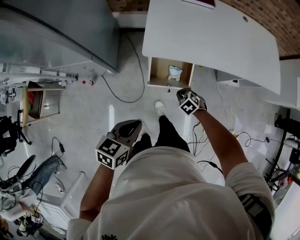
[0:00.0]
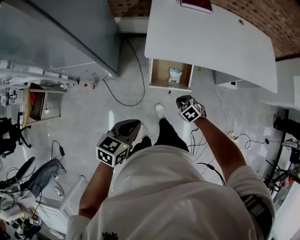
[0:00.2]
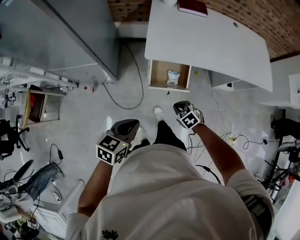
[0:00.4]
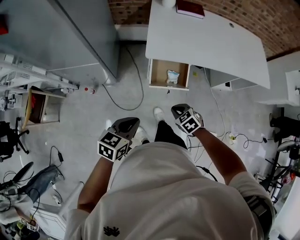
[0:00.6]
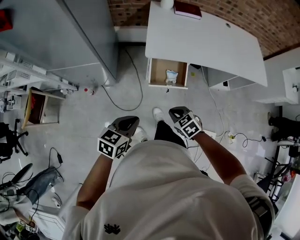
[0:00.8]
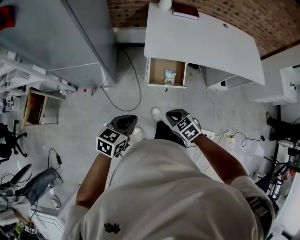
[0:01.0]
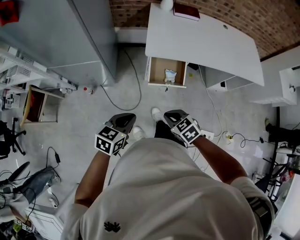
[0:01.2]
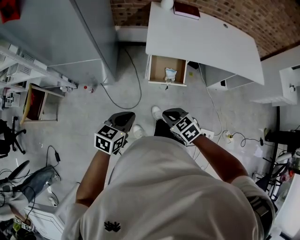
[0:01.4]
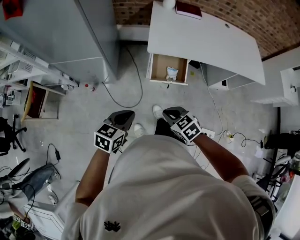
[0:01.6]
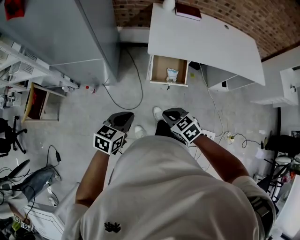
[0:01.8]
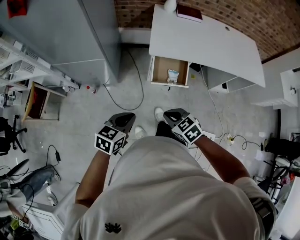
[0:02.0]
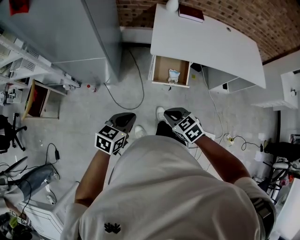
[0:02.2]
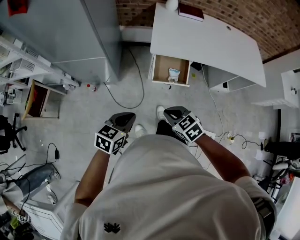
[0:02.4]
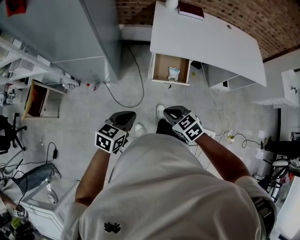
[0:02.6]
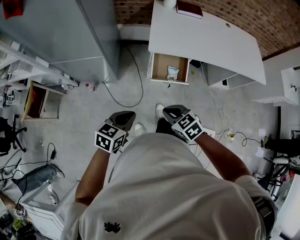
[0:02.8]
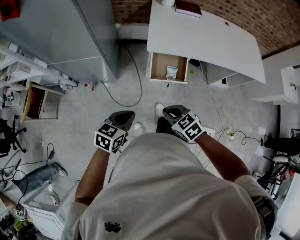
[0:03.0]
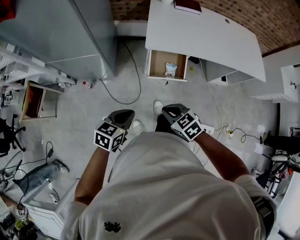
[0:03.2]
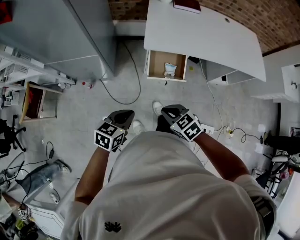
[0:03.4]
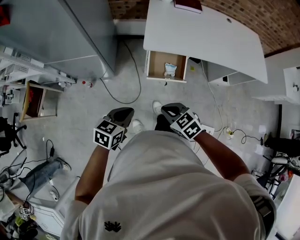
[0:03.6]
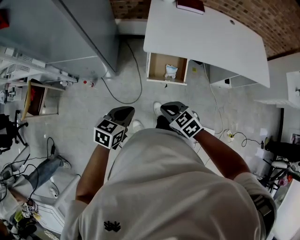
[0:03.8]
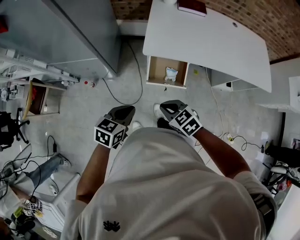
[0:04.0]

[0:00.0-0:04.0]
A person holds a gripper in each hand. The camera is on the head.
0:00.0 to 0:01.4: The right gripper travels backward, upward and to the left by some 35 cm, and rotates roughly 20 degrees. Meanwhile the left gripper goes some 15 cm backward and to the left.
0:01.4 to 0:02.6: The grippers move only a little.
0:02.6 to 0:04.0: Both grippers travel together forward and to the right, roughly 15 cm.

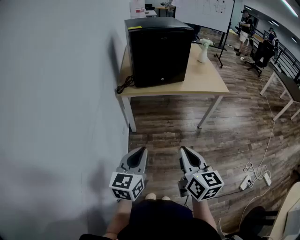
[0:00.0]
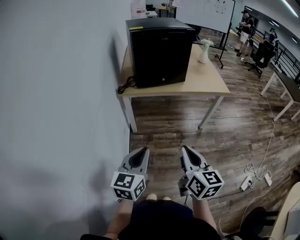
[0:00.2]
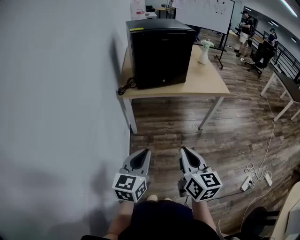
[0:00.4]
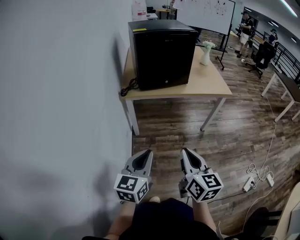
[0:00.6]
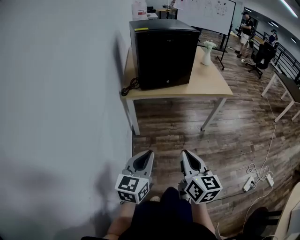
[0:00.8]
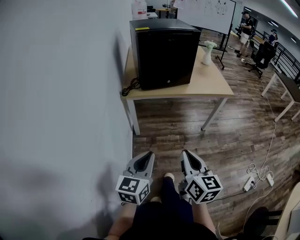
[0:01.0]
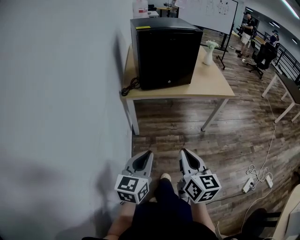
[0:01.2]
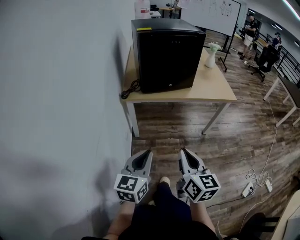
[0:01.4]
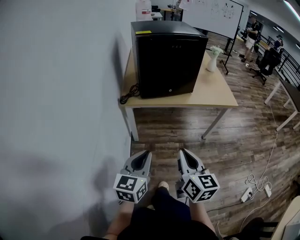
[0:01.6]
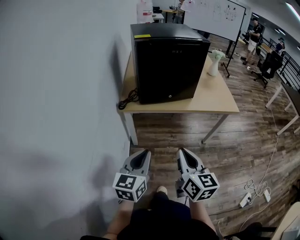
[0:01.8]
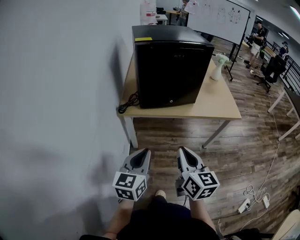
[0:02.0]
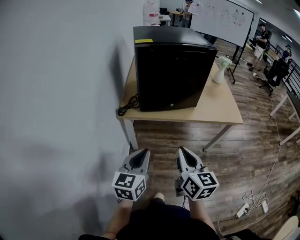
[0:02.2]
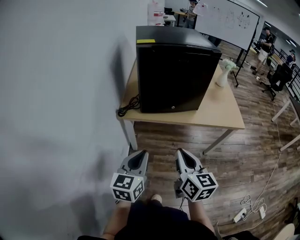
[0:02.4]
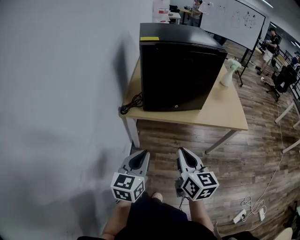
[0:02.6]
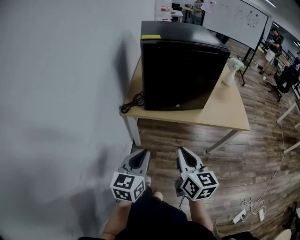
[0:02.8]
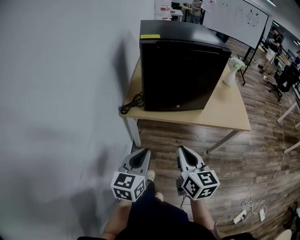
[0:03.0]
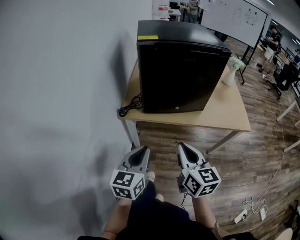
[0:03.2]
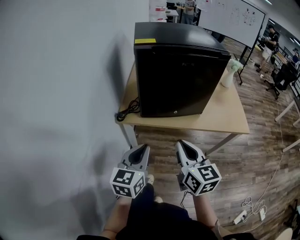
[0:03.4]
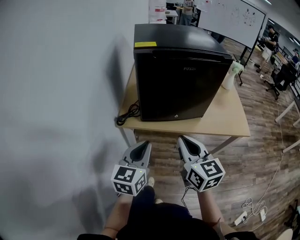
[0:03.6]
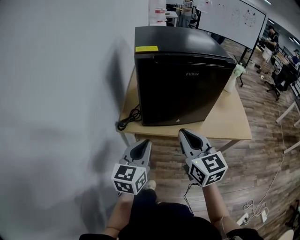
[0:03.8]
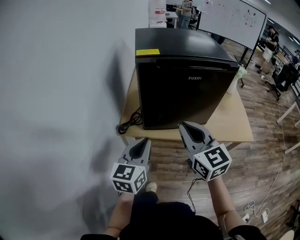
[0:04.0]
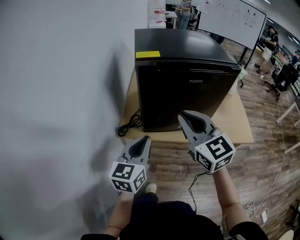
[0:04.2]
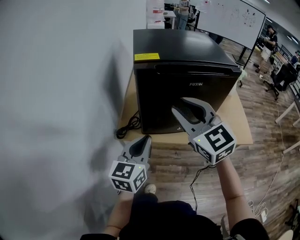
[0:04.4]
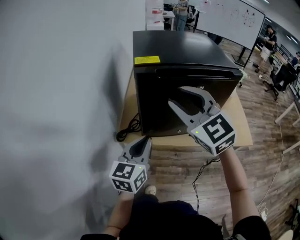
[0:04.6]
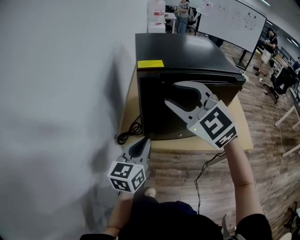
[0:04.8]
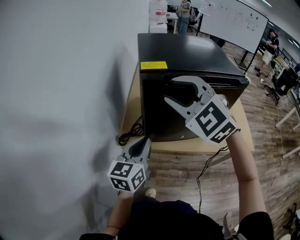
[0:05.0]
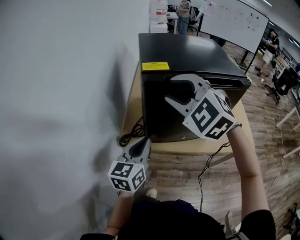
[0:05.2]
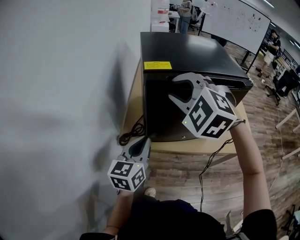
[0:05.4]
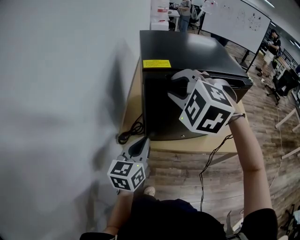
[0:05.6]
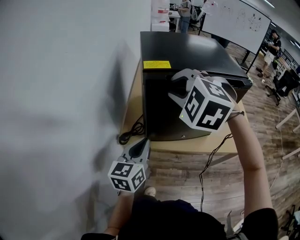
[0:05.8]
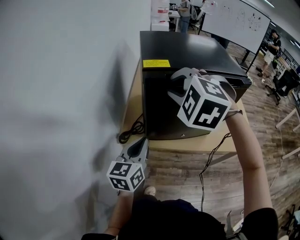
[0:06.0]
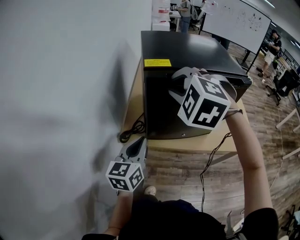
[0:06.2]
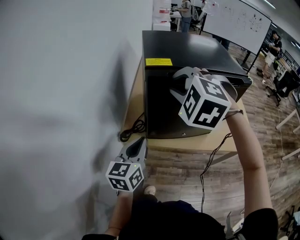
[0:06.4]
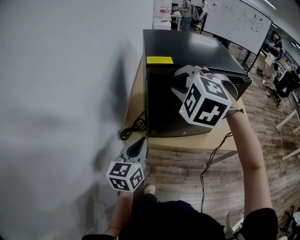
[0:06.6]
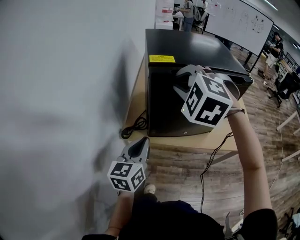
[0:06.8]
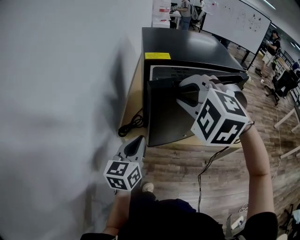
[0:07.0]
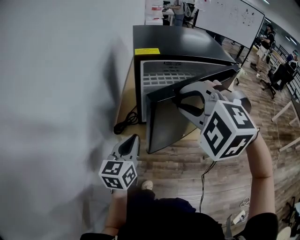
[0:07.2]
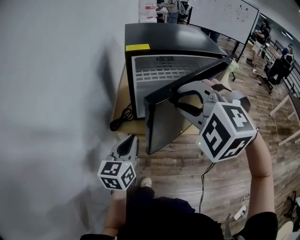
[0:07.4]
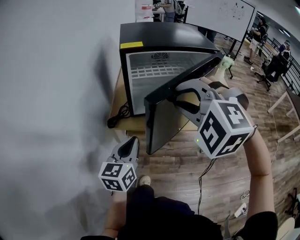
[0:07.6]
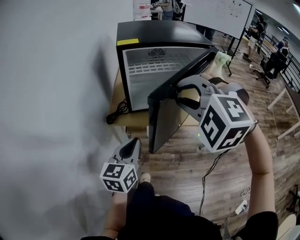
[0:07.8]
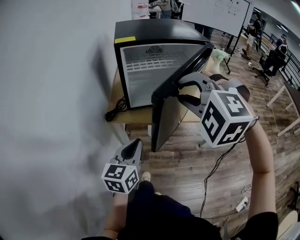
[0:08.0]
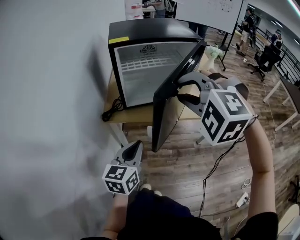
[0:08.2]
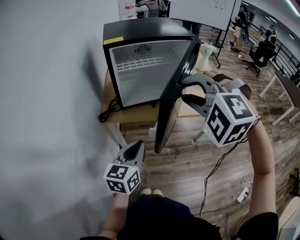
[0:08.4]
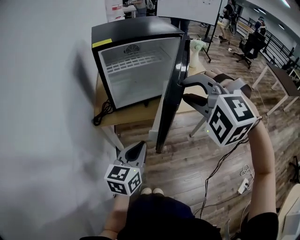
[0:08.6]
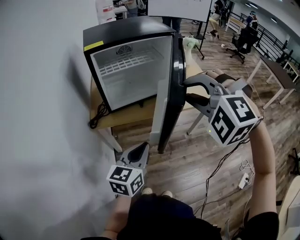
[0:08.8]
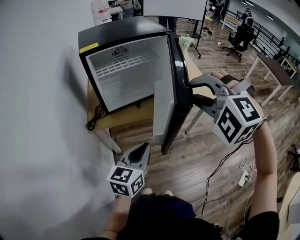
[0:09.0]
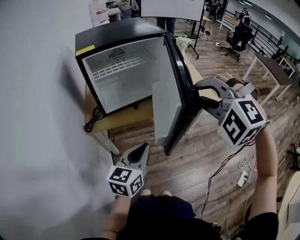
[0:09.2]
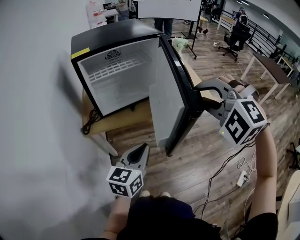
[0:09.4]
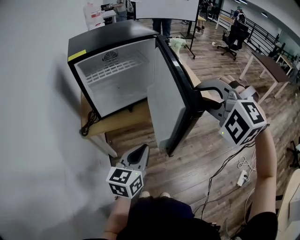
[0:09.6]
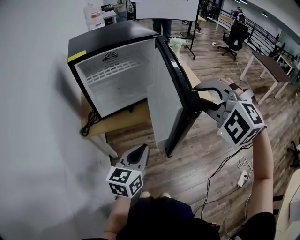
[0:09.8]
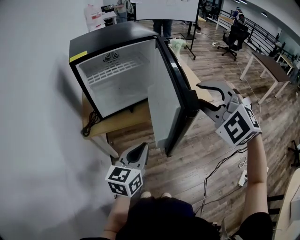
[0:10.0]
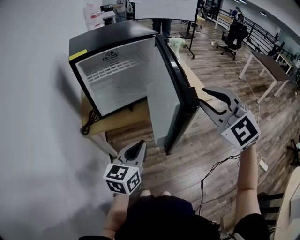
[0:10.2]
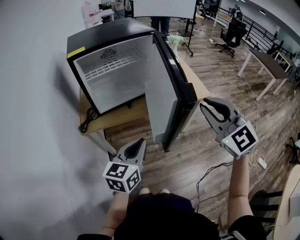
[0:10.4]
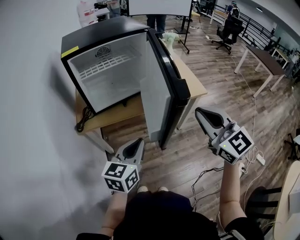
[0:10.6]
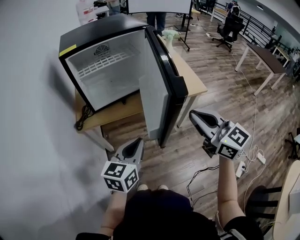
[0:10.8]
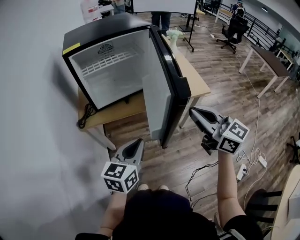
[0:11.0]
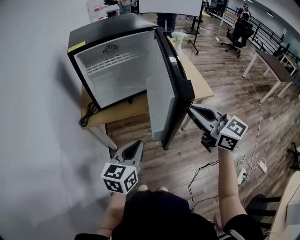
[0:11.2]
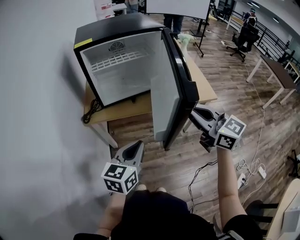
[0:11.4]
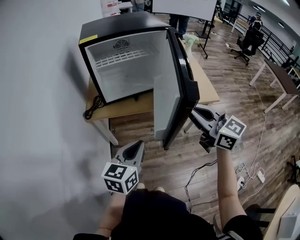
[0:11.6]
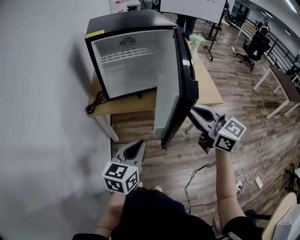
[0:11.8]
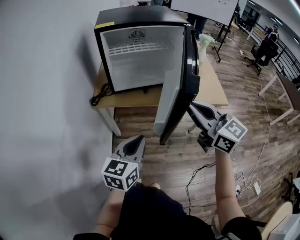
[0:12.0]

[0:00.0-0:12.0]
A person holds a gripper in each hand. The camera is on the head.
0:00.0 to 0:01.6: Both grippers move forward, approximately 10 cm.
0:01.6 to 0:03.0: The two grippers go some 15 cm forward.
0:03.0 to 0:04.4: The left gripper goes about 20 cm forward; the right gripper is displaced forward and upward by approximately 30 cm, turns by some 40 degrees, and opens its fingers.
0:04.4 to 0:06.0: The left gripper shifts by roughly 5 cm. Meanwhile the right gripper travels forward and to the left by roughly 10 cm, and tips its fingers downward by about 30 degrees.
0:06.0 to 0:07.6: The left gripper is displaced backward by some 15 cm. The right gripper is displaced backward and to the right by some 20 cm.
0:07.6 to 0:09.0: The right gripper heads to the right, covering approximately 15 cm. Meanwhile the left gripper is displaced to the right and backward by approximately 15 cm, and swivels about 20 degrees.
0:09.0 to 0:10.4: The right gripper heads to the right, covering approximately 10 cm, and rolls clockwise, seen from behind, by about 50 degrees.
0:10.4 to 0:12.0: The right gripper goes roughly 10 cm to the left and downward, and turns by about 40 degrees.

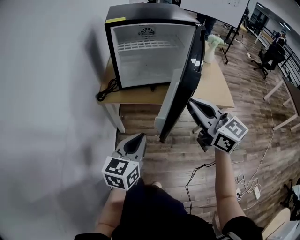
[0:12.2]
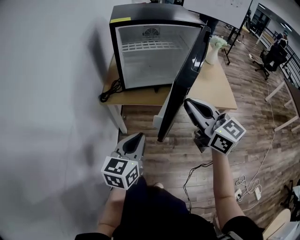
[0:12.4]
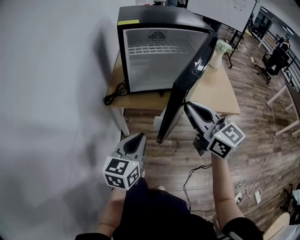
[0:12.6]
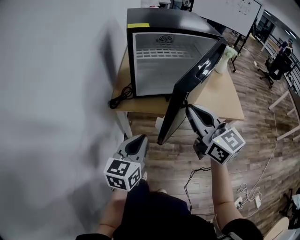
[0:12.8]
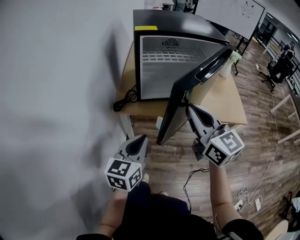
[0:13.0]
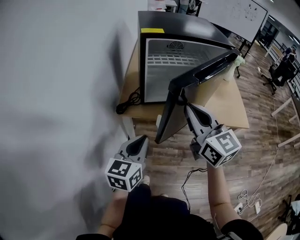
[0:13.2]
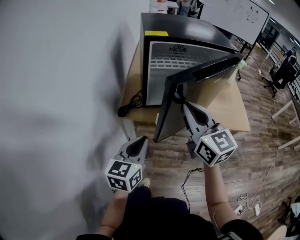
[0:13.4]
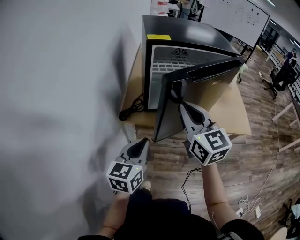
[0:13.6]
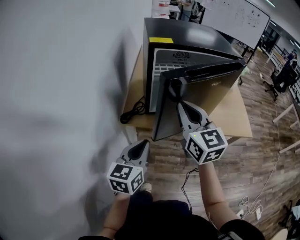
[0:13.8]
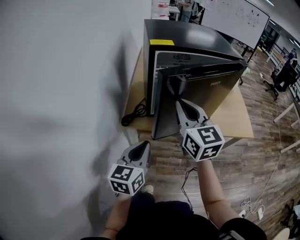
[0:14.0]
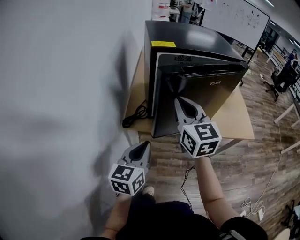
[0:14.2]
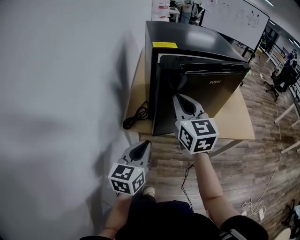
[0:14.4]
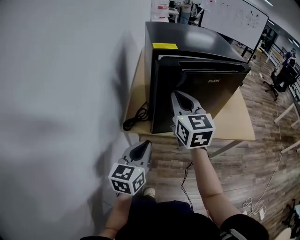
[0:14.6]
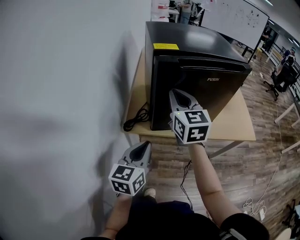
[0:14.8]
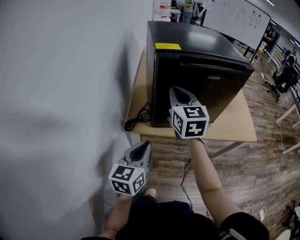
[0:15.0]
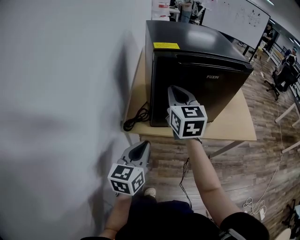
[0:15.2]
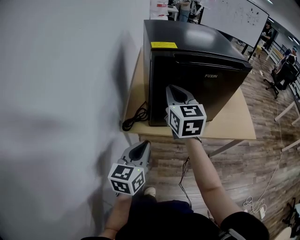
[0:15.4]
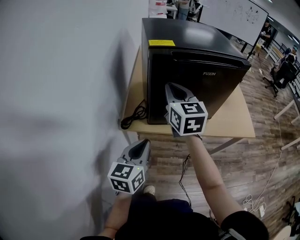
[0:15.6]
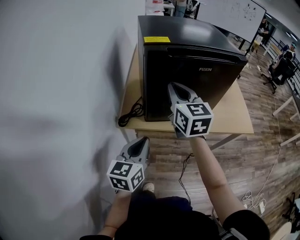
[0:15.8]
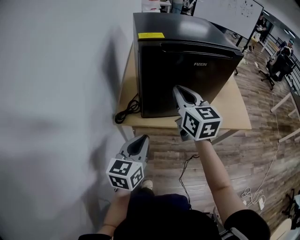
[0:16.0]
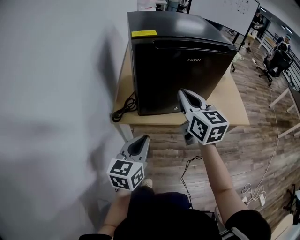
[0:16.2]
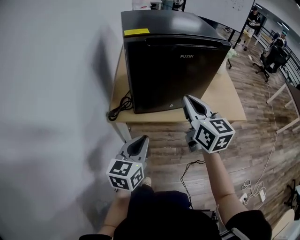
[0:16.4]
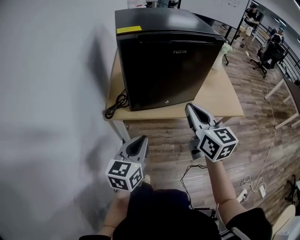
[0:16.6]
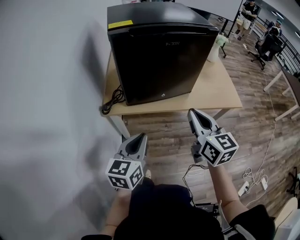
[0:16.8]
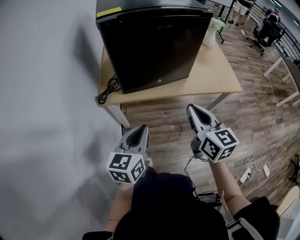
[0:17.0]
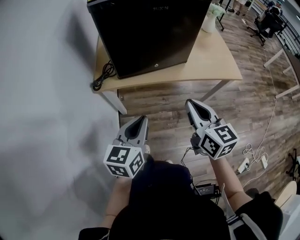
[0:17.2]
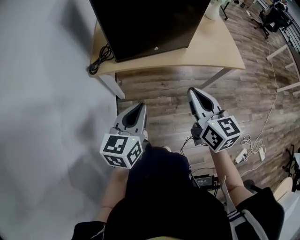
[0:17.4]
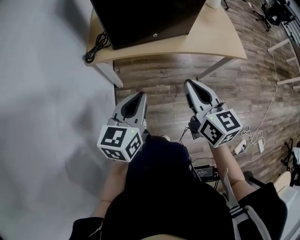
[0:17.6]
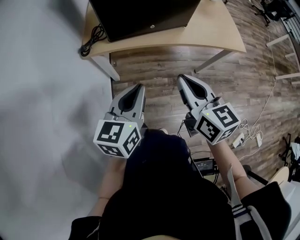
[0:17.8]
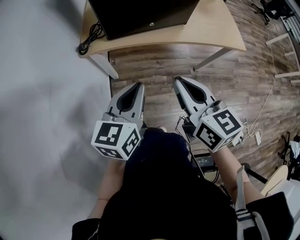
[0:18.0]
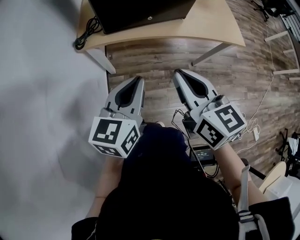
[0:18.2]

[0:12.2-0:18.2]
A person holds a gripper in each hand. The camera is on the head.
0:12.2 to 0:13.8: Both grippers move forward and to the left, approximately 20 cm.
0:13.8 to 0:15.2: The right gripper travels forward by some 10 cm.
0:15.2 to 0:16.6: The right gripper goes some 20 cm to the right and backward, while the left gripper moves to the right and backward, approximately 10 cm.
0:16.6 to 0:18.2: The right gripper is displaced backward and downward by some 15 cm. The left gripper moves to the right and backward, approximately 5 cm.

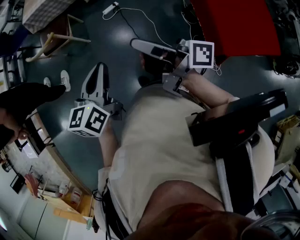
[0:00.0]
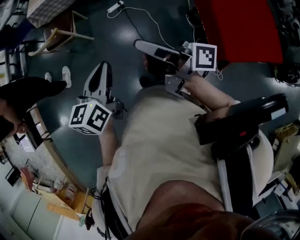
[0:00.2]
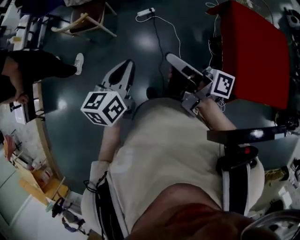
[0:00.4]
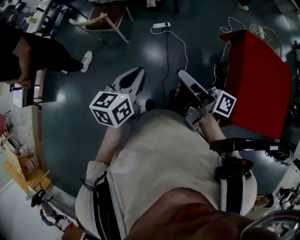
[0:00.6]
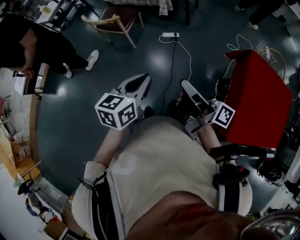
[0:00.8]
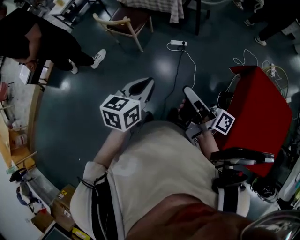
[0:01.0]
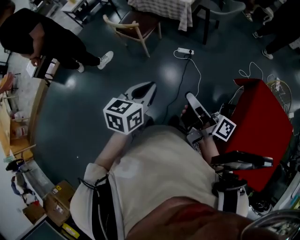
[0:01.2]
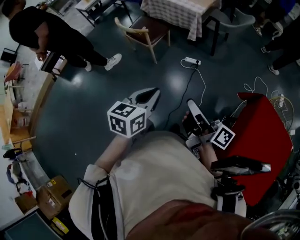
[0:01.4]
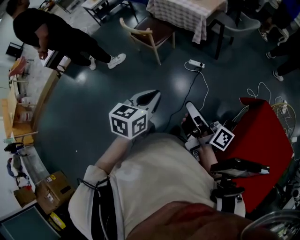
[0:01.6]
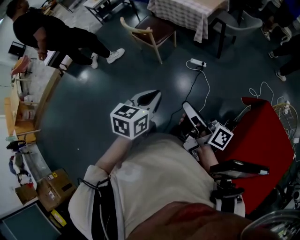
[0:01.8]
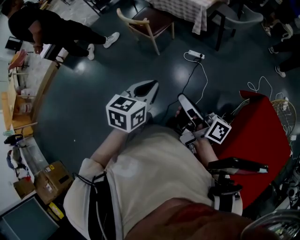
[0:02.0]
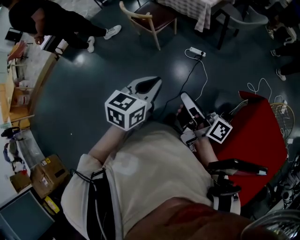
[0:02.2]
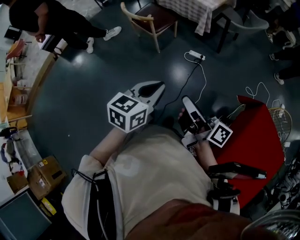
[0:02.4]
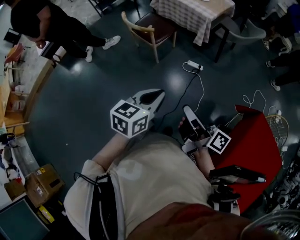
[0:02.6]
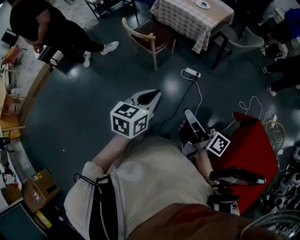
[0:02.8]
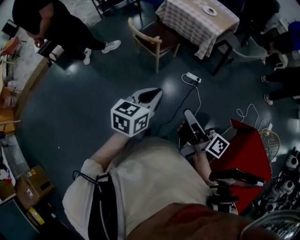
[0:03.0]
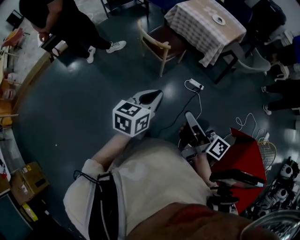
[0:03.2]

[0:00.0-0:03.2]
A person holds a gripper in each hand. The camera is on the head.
0:00.0 to 0:01.6: The left gripper ends up some 10 cm from where it was, and swivels approximately 20 degrees.
0:01.6 to 0:03.2: The left gripper changes place by some 15 cm.
